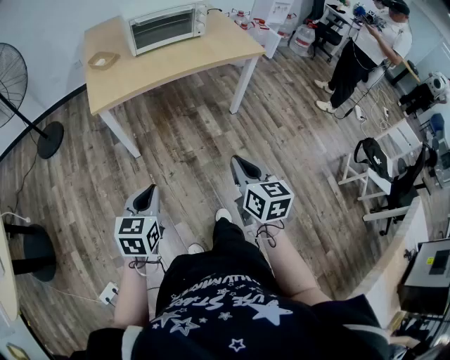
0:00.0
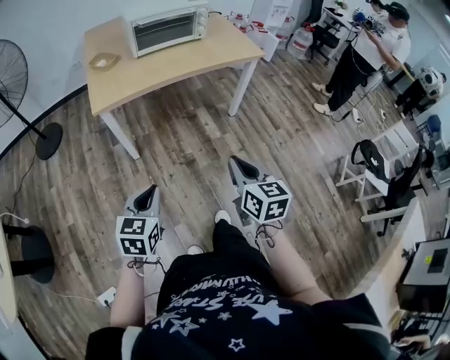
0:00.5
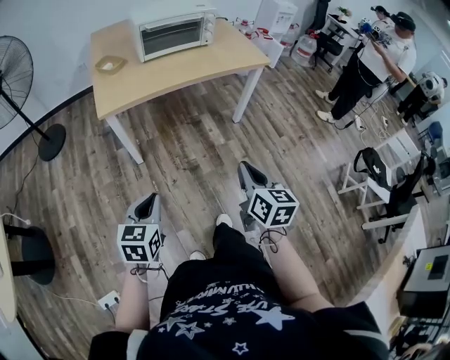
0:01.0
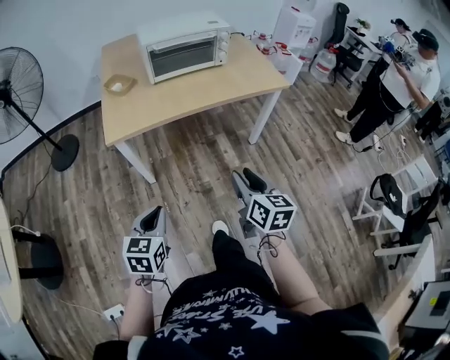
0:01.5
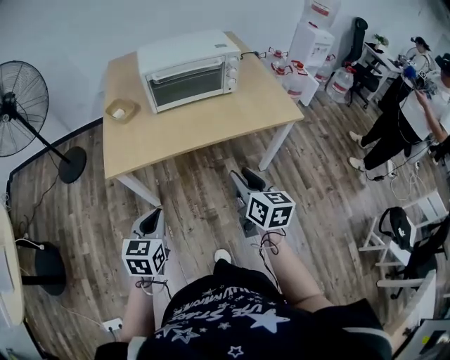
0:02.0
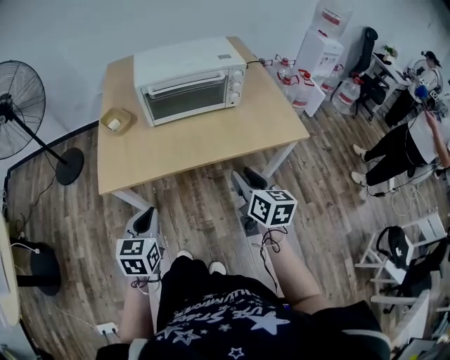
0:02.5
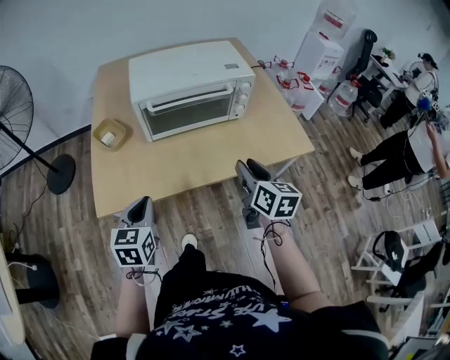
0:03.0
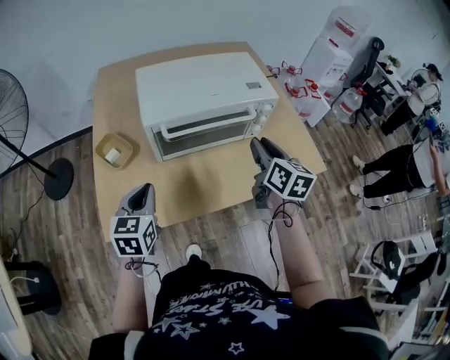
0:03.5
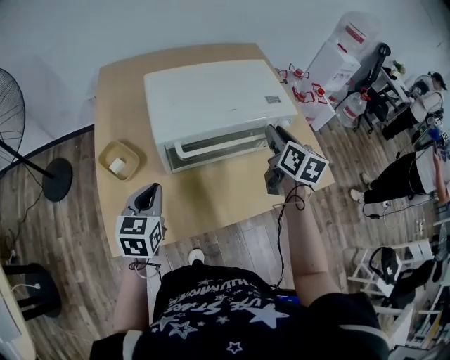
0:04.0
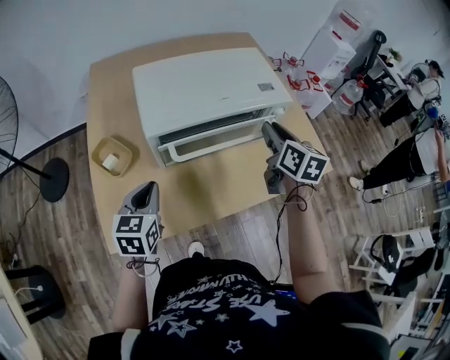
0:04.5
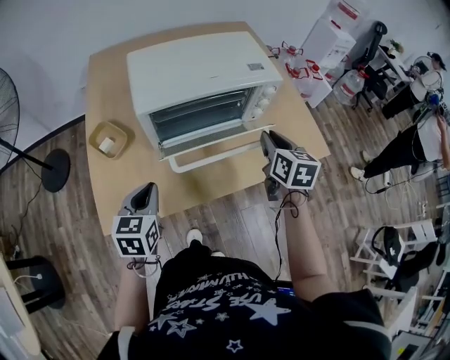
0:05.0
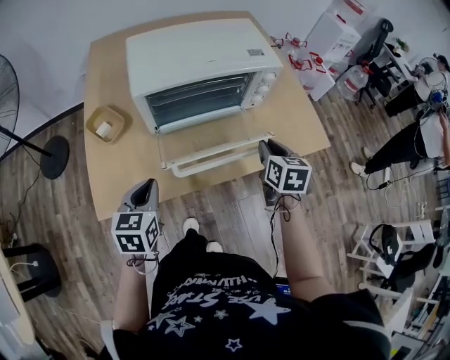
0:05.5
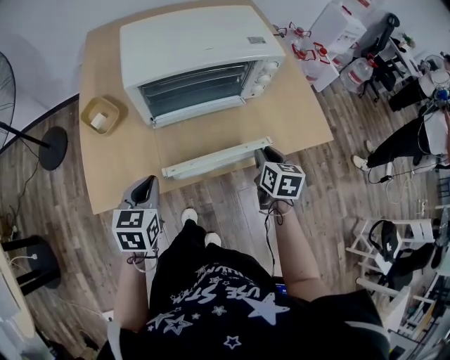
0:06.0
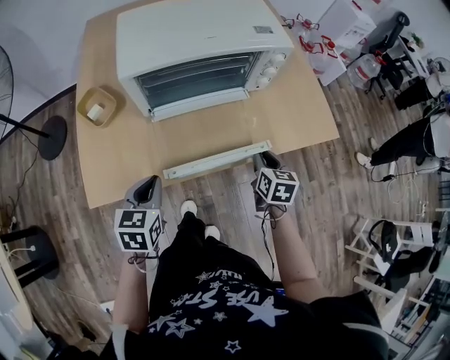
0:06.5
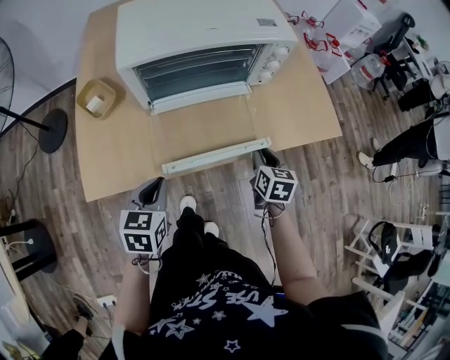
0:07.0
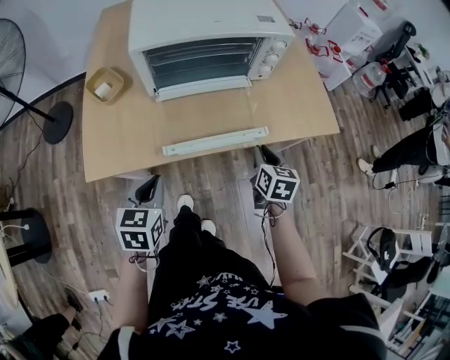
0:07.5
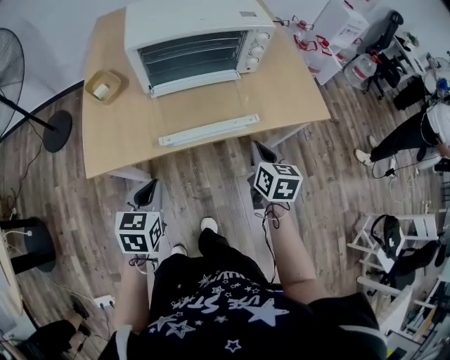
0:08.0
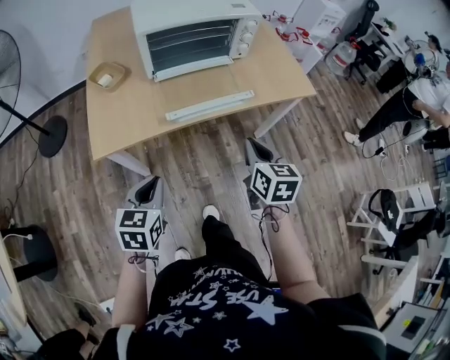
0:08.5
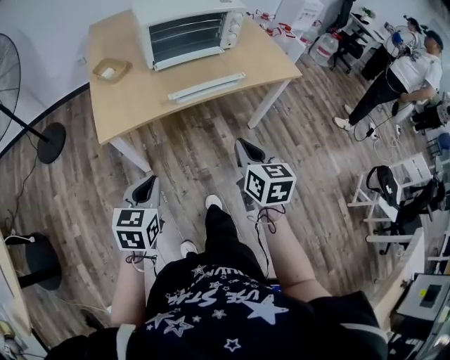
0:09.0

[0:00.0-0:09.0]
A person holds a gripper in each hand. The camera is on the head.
0:00.0 to 0:02.0: The grippers both shift forward by about 30 cm. The right gripper opens up.
0:02.0 to 0:04.5: The two grippers travel together, forward, about 40 cm.
0:04.5 to 0:07.0: The right gripper heads downward and backward, covering approximately 25 cm, and turns by roughly 20 degrees. The left gripper is displaced backward, to the right and downward by roughly 15 cm.
0:07.0 to 0:09.0: The right gripper shifts about 35 cm backward and upward; the left gripper heads backward, covering roughly 30 cm.

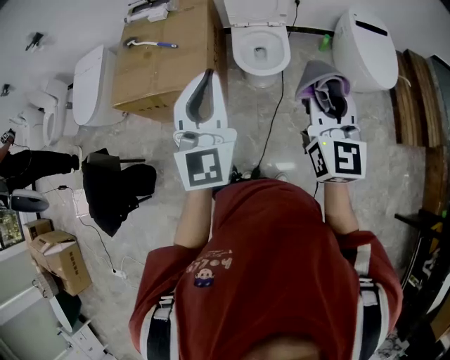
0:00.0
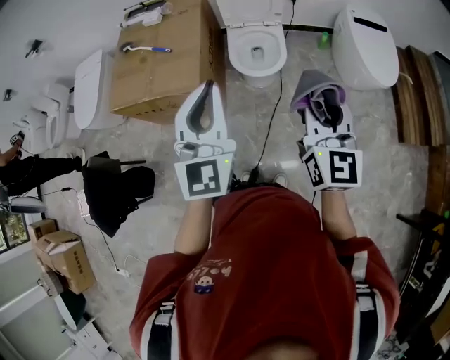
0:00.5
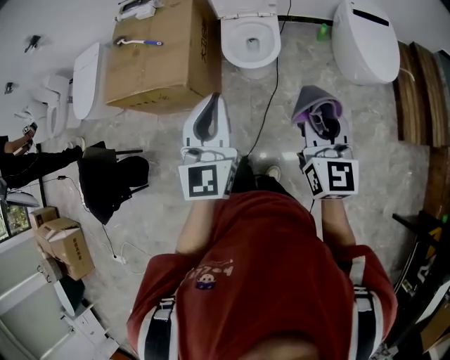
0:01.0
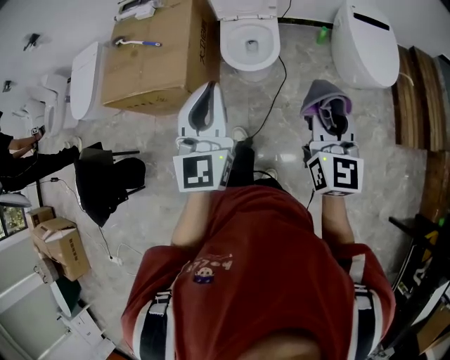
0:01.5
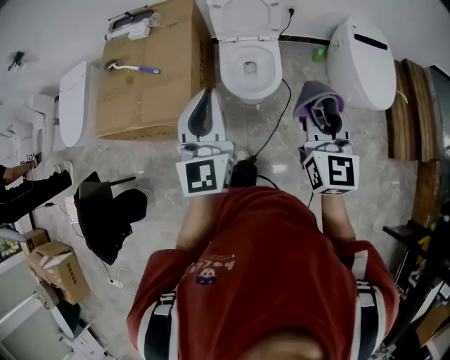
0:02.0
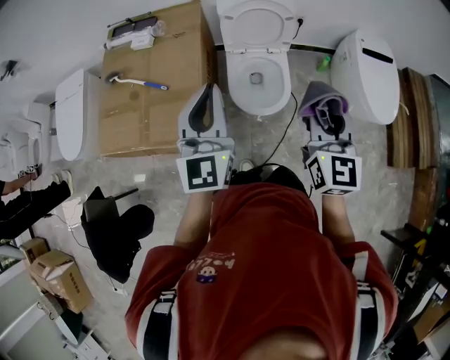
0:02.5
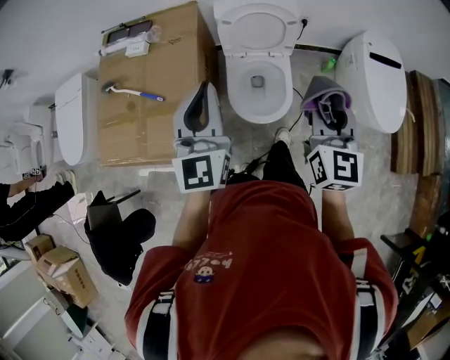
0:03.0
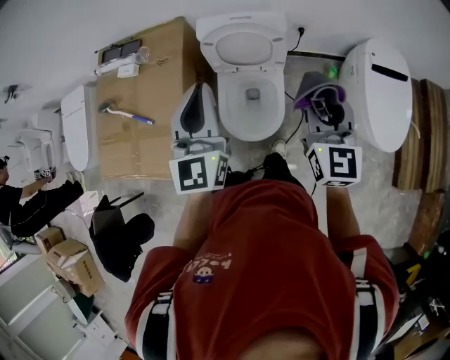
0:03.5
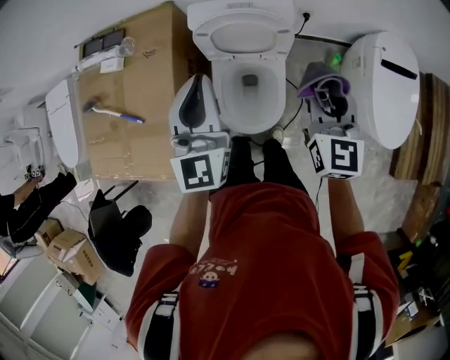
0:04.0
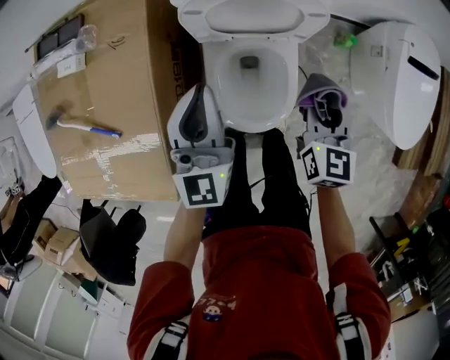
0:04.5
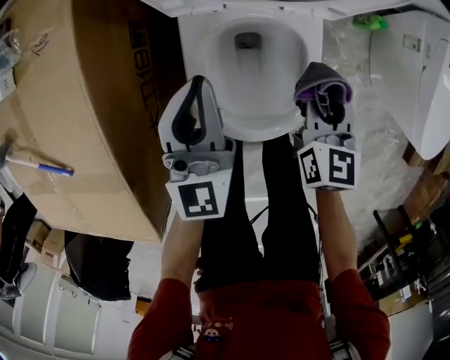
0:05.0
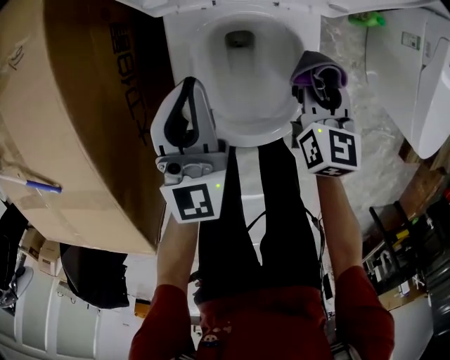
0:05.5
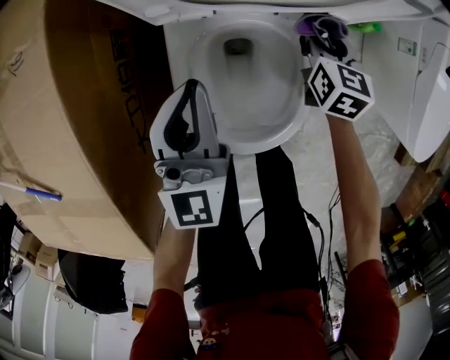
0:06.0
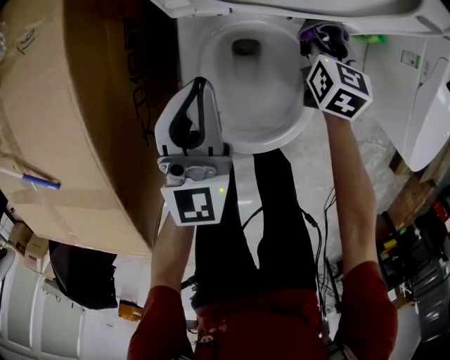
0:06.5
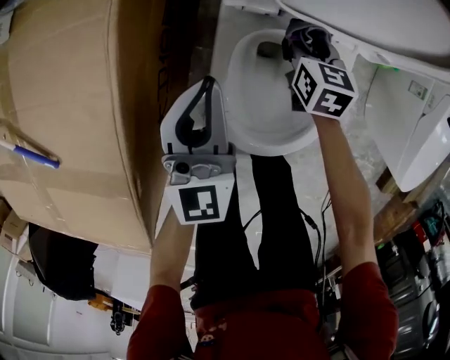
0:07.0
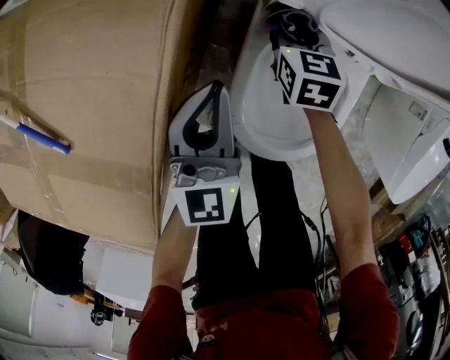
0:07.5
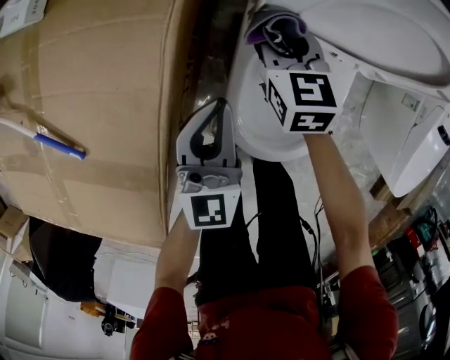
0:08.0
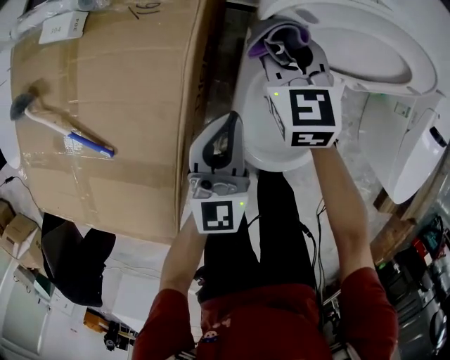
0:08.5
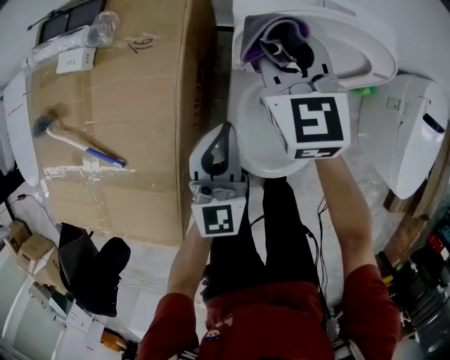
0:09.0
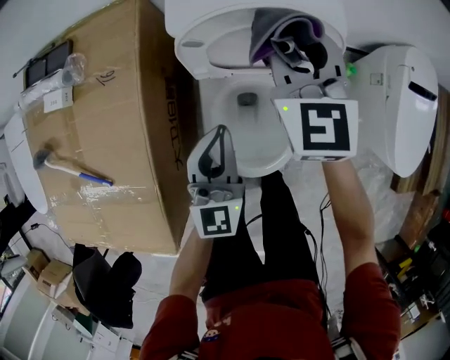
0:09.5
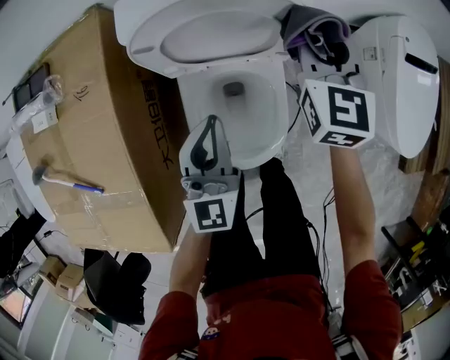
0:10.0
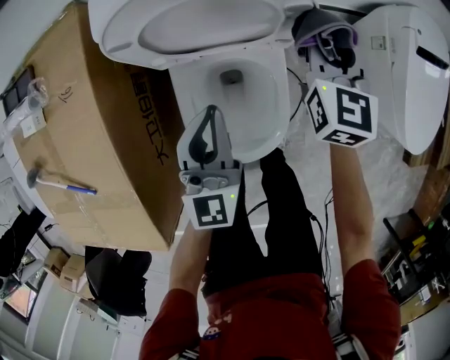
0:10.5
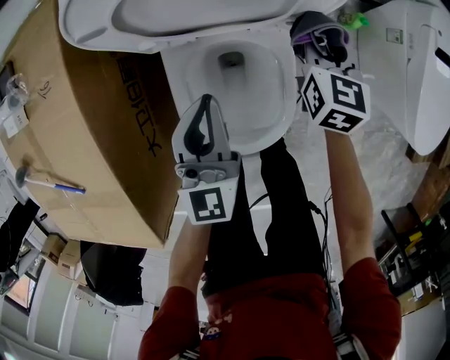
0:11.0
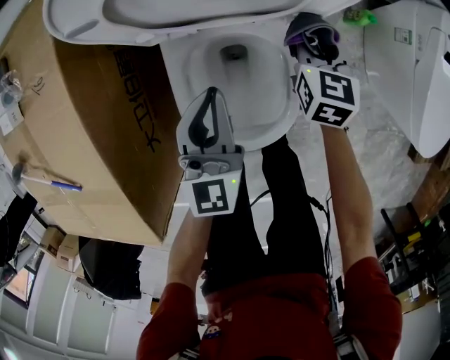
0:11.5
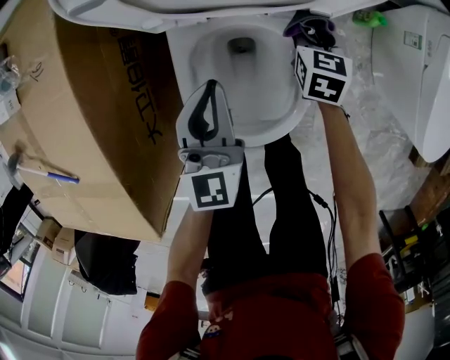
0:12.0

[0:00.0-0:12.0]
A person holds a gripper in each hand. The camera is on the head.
0:00.0 to 0:02.0: The grippers both shift forward by roughly 15 cm.
0:02.0 to 0:04.0: Both grippers move forward, roughly 40 cm.
0:04.0 to 0:06.0: Both grippers travel together downward, roughly 50 cm. The right gripper swivels approximately 30 degrees.
0:06.0 to 0:08.0: The right gripper travels to the left by about 30 cm, and changes its angle by roughly 30 degrees, while the left gripper goes roughly 10 cm to the left.
0:08.0 to 0:10.0: The left gripper is displaced to the right and upward by about 20 cm. Meanwhile the right gripper shifts some 35 cm to the right and upward, and changes its angle by some 30 degrees.
0:10.0 to 0:12.0: The left gripper moves downward, some 15 cm. Meanwhile the right gripper shifts roughly 30 cm downward, and turns by about 30 degrees.

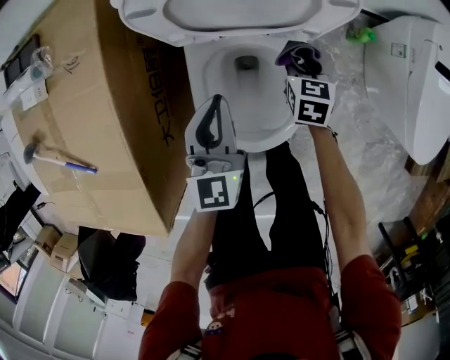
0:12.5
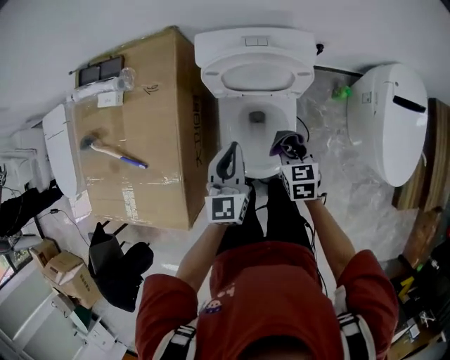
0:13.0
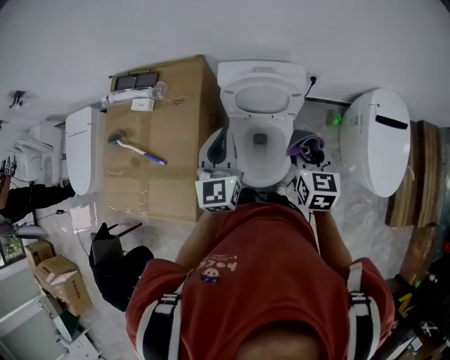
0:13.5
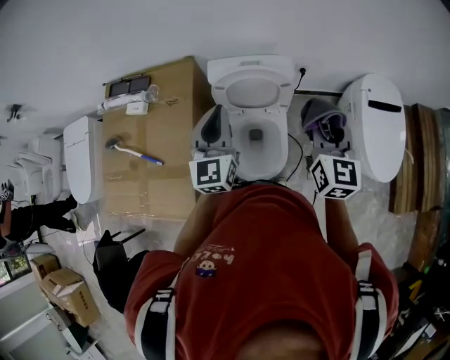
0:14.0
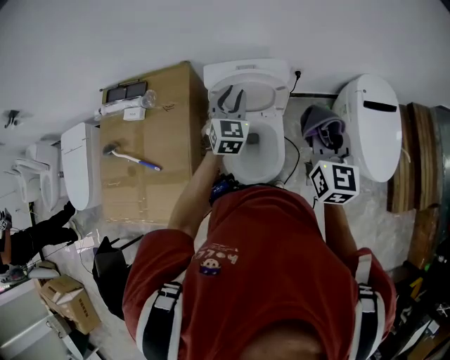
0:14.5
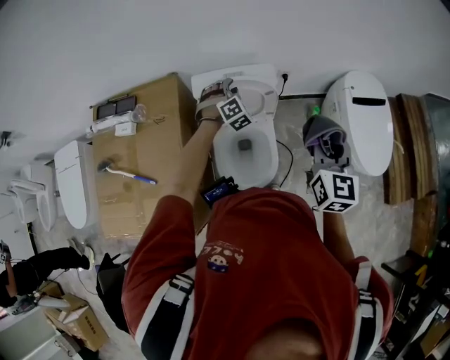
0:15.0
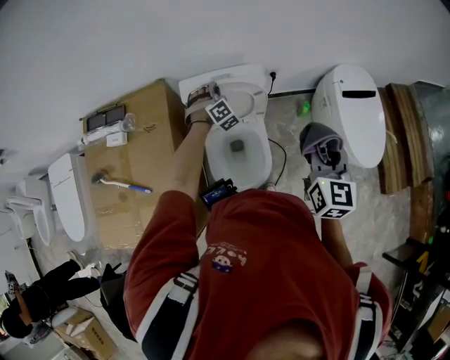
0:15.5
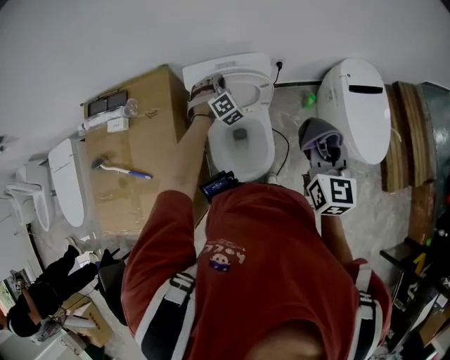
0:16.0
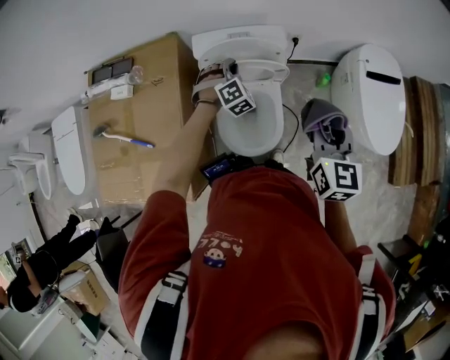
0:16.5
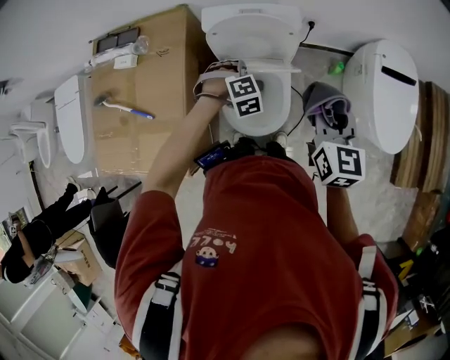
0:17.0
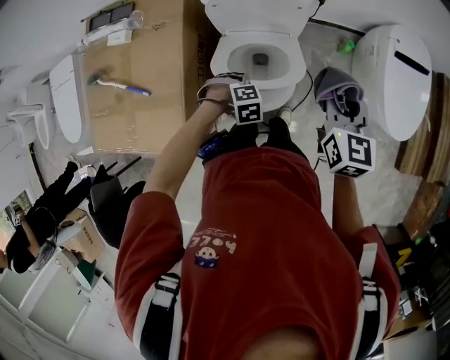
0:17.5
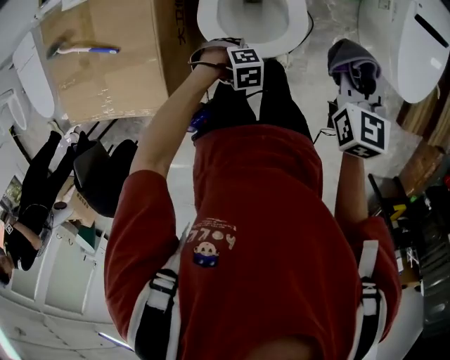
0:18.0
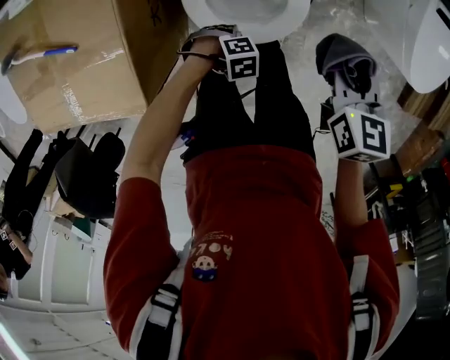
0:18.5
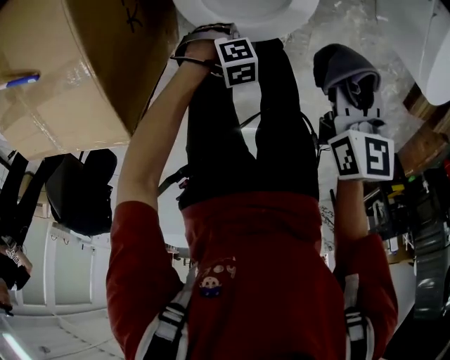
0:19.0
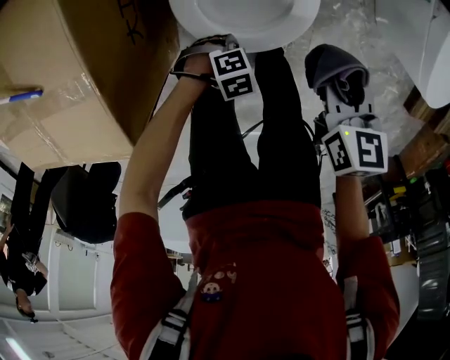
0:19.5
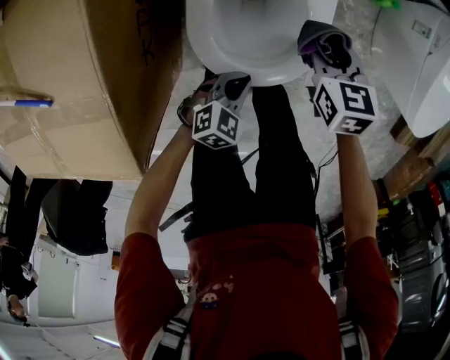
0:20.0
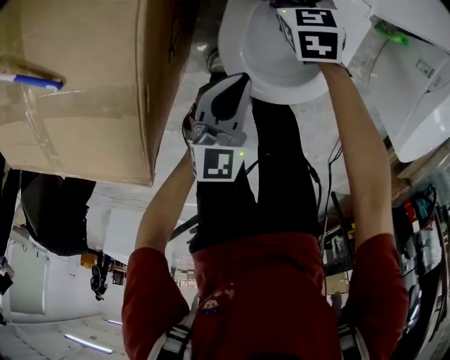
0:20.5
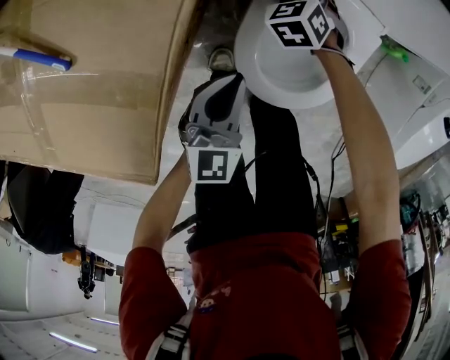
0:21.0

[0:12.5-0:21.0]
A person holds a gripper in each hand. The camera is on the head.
0:12.5 to 0:14.5: The right gripper goes roughly 50 cm upward, and tilts its fingers some 40 degrees upward, while the left gripper is displaced upward by about 30 cm, swivels approximately 30 degrees, and opens.
0:14.5 to 0:16.5: The right gripper shifts by approximately 5 cm, while the left gripper travels downward by approximately 10 cm, and rolls clockwise, seen from behind, by roughly 40 degrees.
0:16.5 to 0:19.0: Both grippers move downward, approximately 40 cm. The right gripper rotates some 30 degrees. The left gripper points its fingers roughly 40 degrees further downward.
0:19.0 to 0:21.0: The right gripper ends up about 40 cm from where it was, and rolls counterclockwise, seen from behind, by approximately 60 degrees, while the left gripper ends up approximately 25 cm from where it was, and tilts its fingers about 50 degrees upward.
